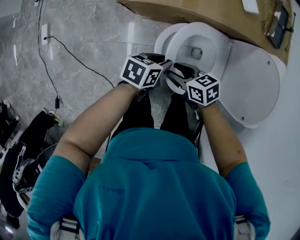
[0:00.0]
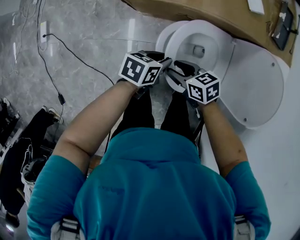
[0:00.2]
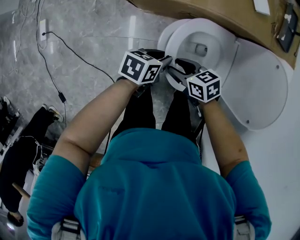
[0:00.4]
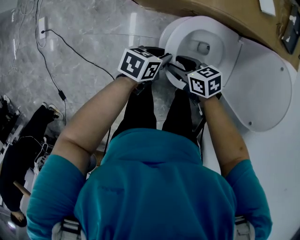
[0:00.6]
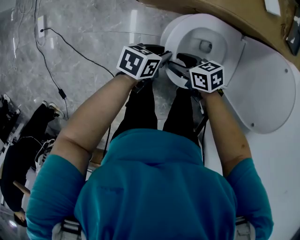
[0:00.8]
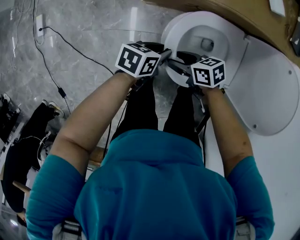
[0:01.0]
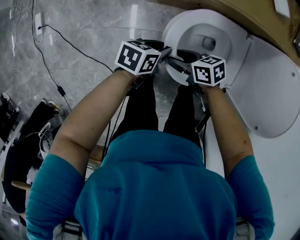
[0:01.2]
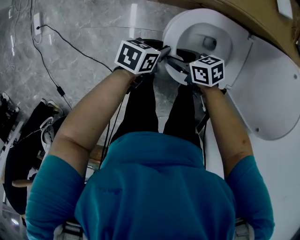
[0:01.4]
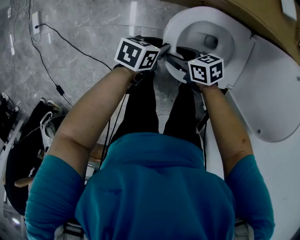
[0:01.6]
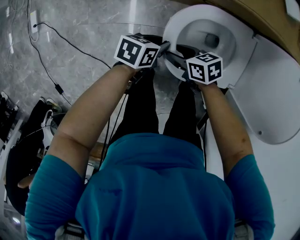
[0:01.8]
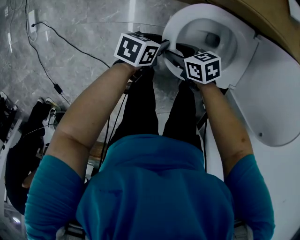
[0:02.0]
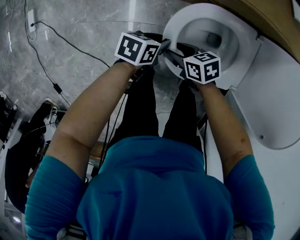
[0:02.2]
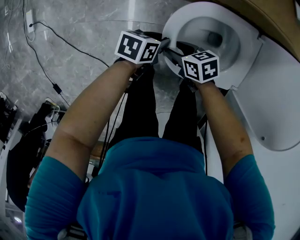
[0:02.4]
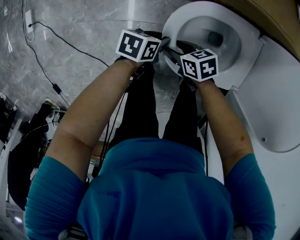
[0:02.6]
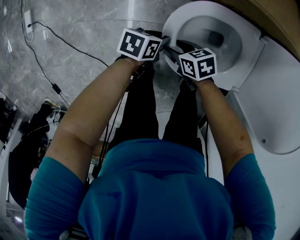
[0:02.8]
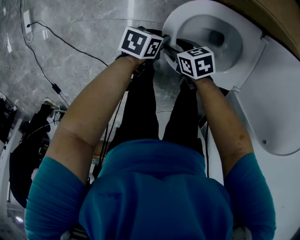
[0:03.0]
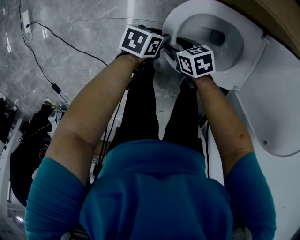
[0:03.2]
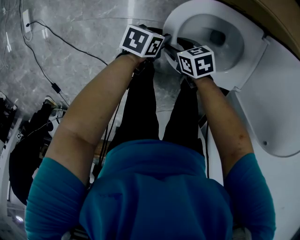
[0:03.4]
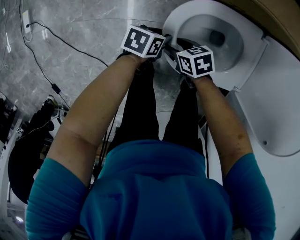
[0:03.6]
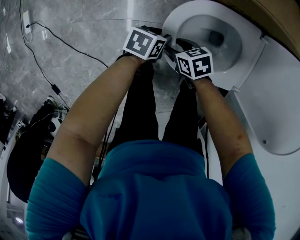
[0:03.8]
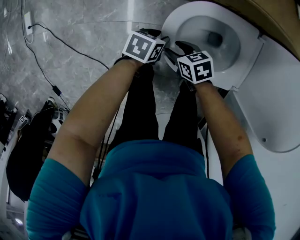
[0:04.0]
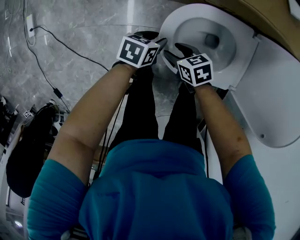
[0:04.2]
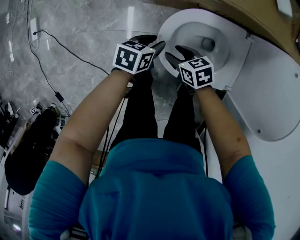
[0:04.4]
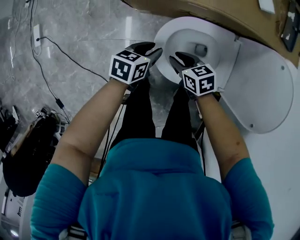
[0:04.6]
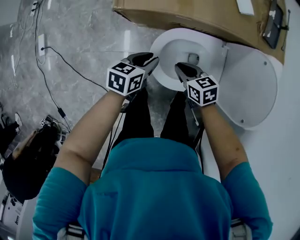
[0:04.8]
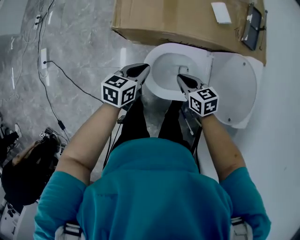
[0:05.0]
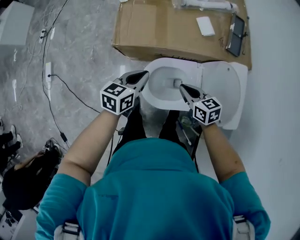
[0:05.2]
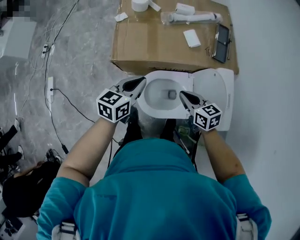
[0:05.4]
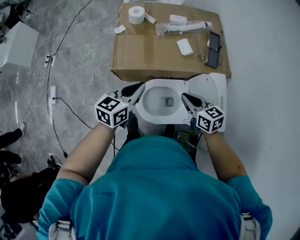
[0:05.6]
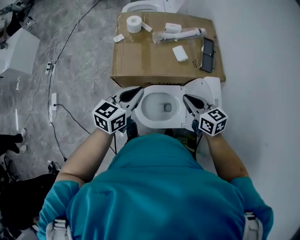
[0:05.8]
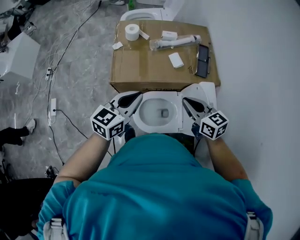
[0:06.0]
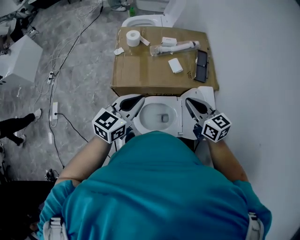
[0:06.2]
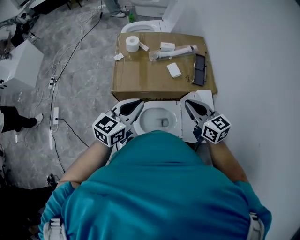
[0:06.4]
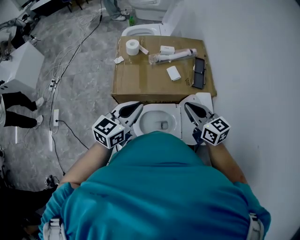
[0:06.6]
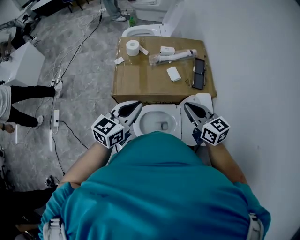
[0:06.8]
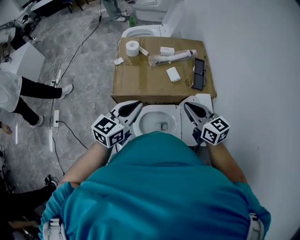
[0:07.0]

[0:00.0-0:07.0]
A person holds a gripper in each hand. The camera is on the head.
0:00.0 to 0:01.4: Both grippers travel together downward, approximately 10 cm.
0:01.4 to 0:02.8: The grippers both shift downward by some 10 cm.
0:02.8 to 0:04.2: The grippers move only a little.
0:04.2 to 0:05.6: Both grippers move upward, roughly 50 cm. The left gripper tilts its fingers about 30 degrees upward, and closes up. Meanwhile the right gripper rotates roughly 40 degrees, and closes.
0:05.6 to 0:07.0: The two grippers go about 15 cm upward.

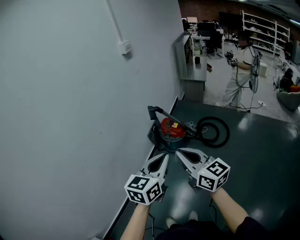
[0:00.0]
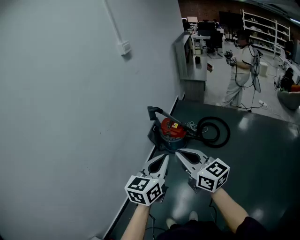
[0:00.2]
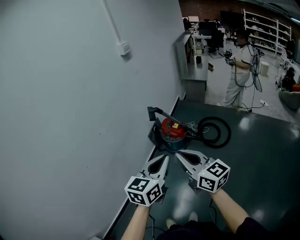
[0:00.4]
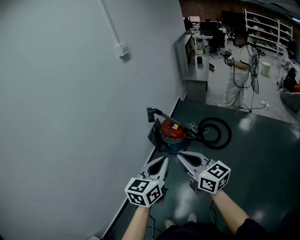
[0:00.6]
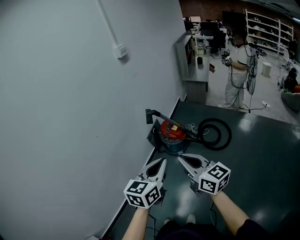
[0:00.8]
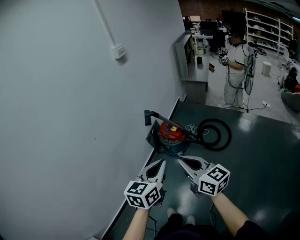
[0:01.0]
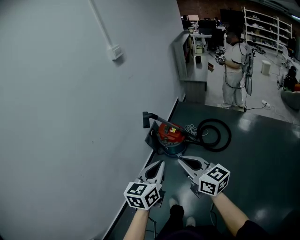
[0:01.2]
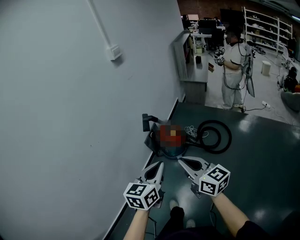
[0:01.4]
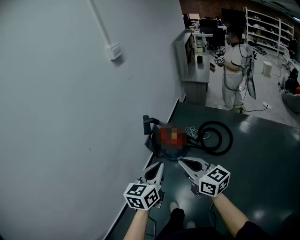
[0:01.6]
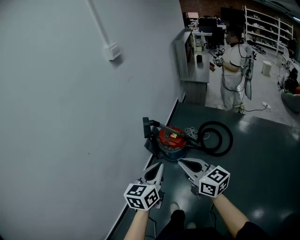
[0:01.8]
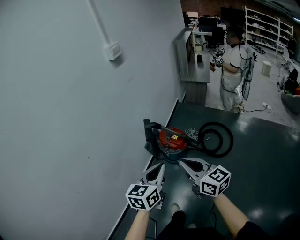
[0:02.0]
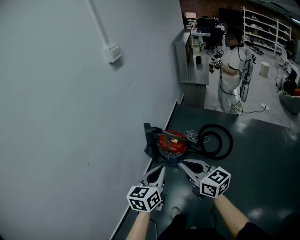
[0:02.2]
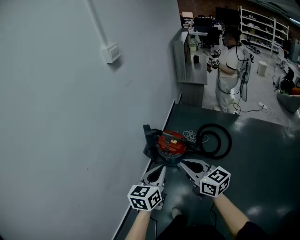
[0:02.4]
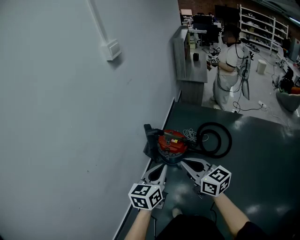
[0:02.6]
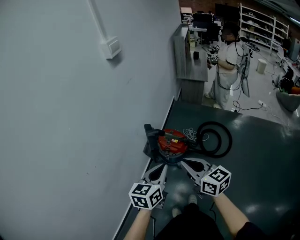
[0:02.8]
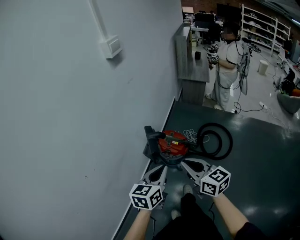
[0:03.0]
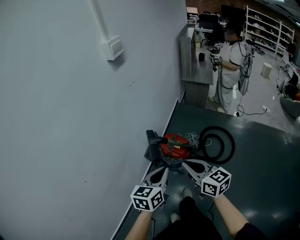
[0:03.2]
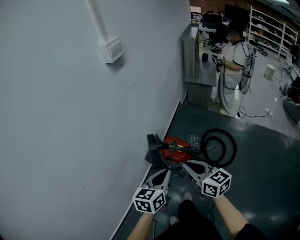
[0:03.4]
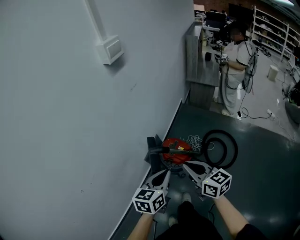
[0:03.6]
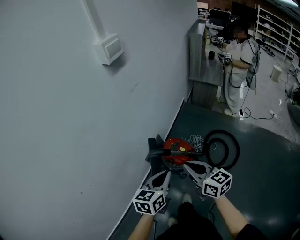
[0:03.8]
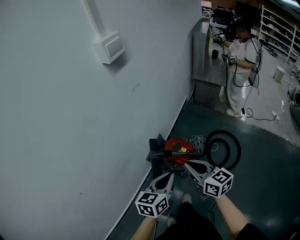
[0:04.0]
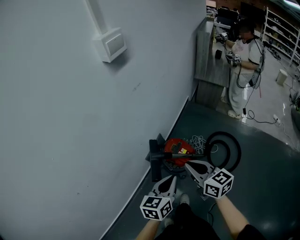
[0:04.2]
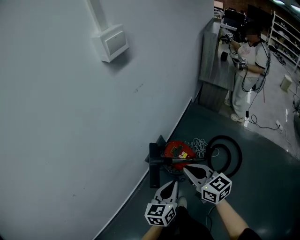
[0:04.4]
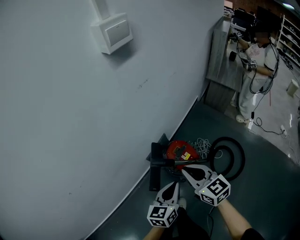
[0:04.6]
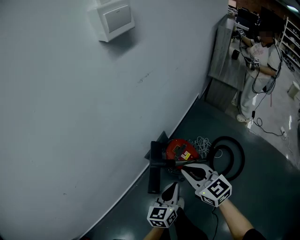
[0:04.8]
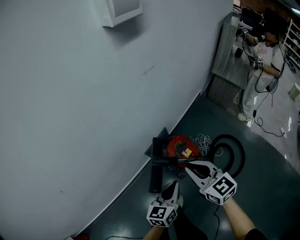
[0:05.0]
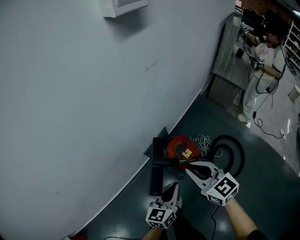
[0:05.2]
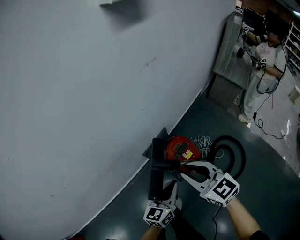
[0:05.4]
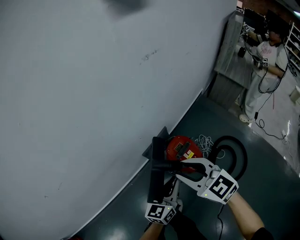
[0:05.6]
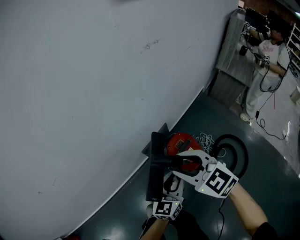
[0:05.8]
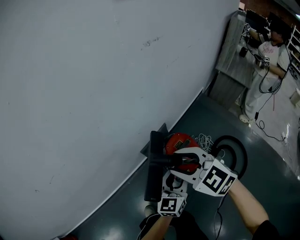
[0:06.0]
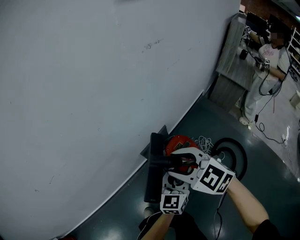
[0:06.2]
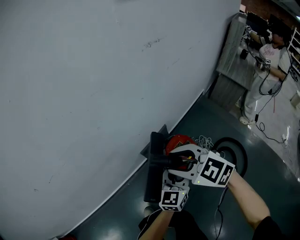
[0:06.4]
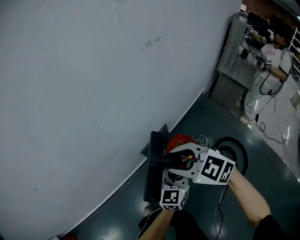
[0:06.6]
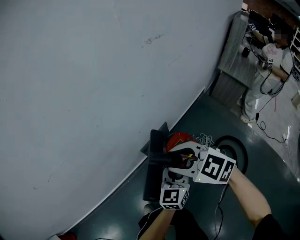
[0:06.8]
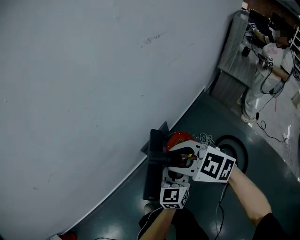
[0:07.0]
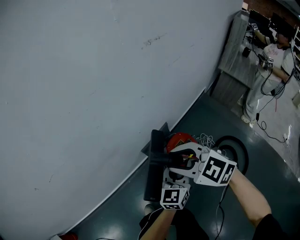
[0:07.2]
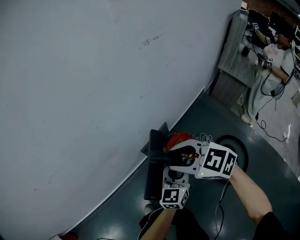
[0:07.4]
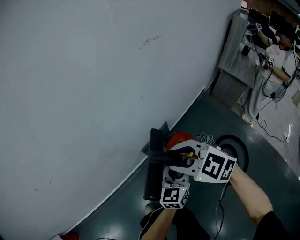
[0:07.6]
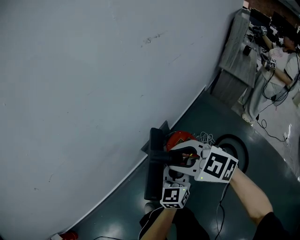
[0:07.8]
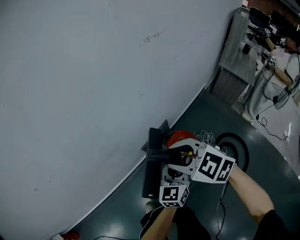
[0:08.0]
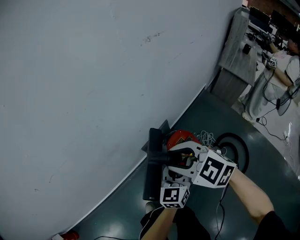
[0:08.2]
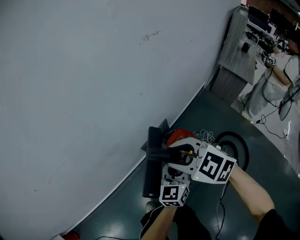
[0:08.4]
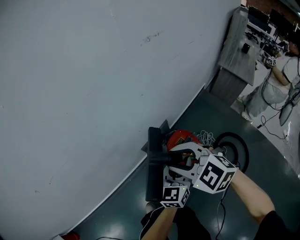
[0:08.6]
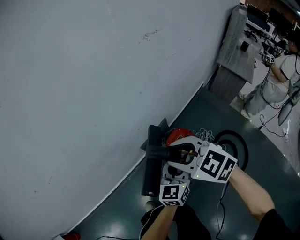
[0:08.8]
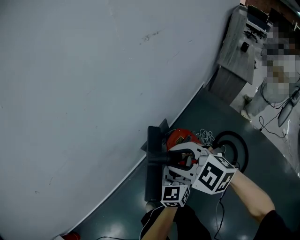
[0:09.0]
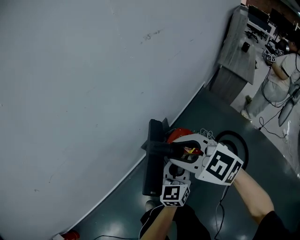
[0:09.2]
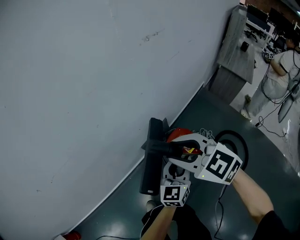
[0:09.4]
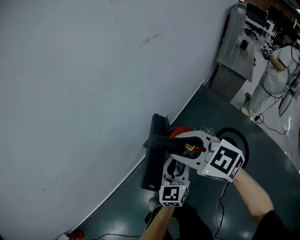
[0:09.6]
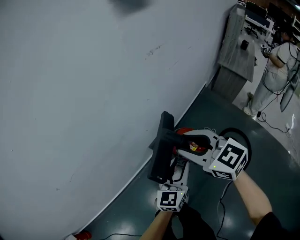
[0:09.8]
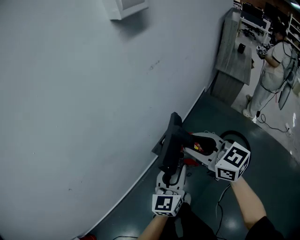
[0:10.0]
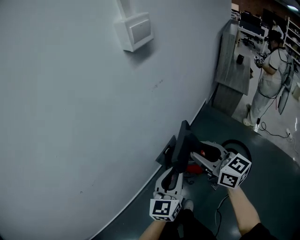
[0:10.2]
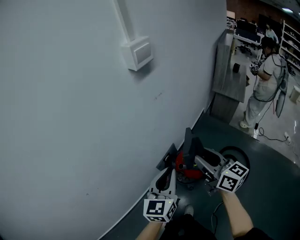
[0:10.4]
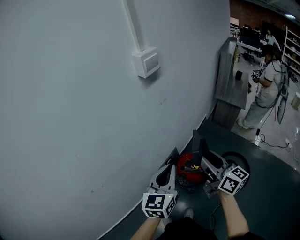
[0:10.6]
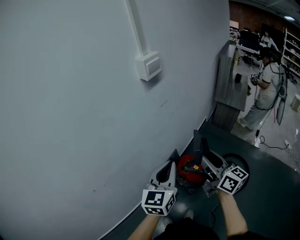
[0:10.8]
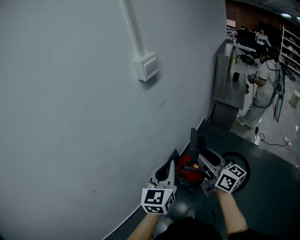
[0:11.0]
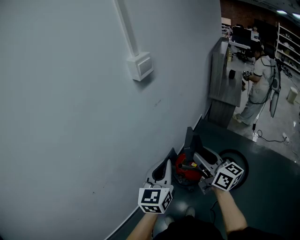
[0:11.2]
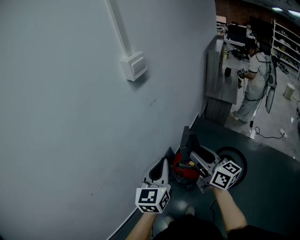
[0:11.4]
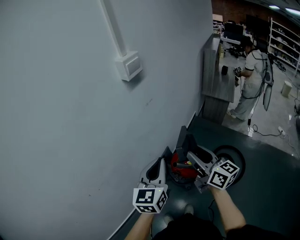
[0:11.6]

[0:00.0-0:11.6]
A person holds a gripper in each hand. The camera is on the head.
0:00.0 to 0:01.4: The right gripper is displaced forward, to the right and downward by approximately 10 cm, while the left gripper heads forward, covering approximately 10 cm.
0:01.4 to 0:02.8: Both grippers move forward, approximately 20 cm.
0:02.8 to 0:04.4: The left gripper shifts some 15 cm forward and downward; the right gripper travels forward by about 20 cm.
0:04.4 to 0:05.8: The left gripper moves downward and forward, about 20 cm, and opens; the right gripper travels downward, forward and to the left by roughly 15 cm, rotates some 40 degrees, and opens up.
0:05.8 to 0:07.2: The left gripper moves about 5 cm.
0:07.2 to 0:08.8: The grippers stay close to where they were, moving slightly.
0:08.8 to 0:10.2: Both grippers travel together upward, roughly 20 cm. The right gripper turns by roughly 50 degrees.
0:10.2 to 0:11.6: The right gripper is displaced upward by some 5 cm, and rotates approximately 20 degrees. Meanwhile the left gripper goes roughly 15 cm upward, and closes its fingers.

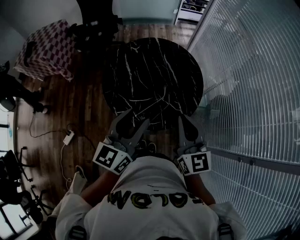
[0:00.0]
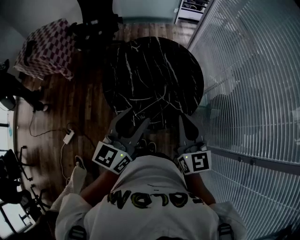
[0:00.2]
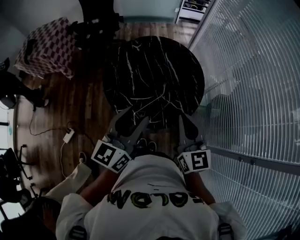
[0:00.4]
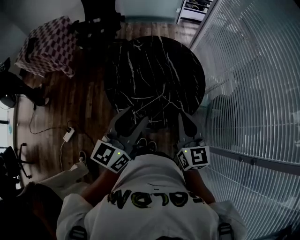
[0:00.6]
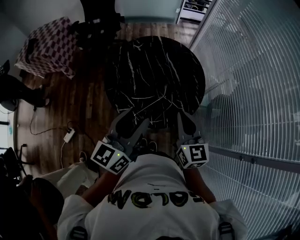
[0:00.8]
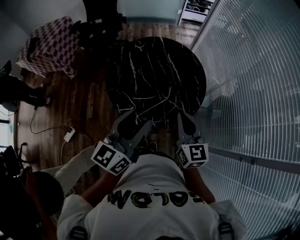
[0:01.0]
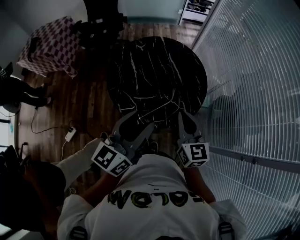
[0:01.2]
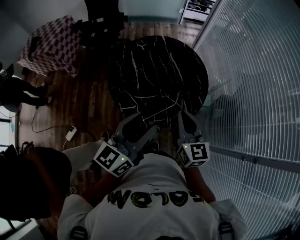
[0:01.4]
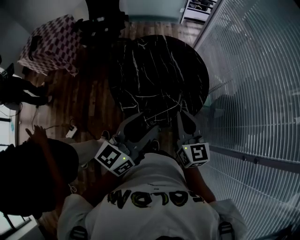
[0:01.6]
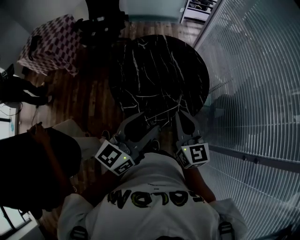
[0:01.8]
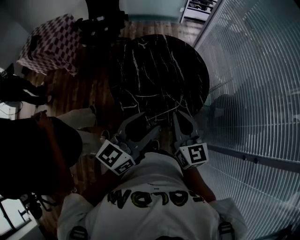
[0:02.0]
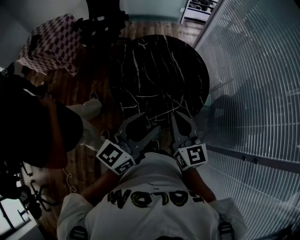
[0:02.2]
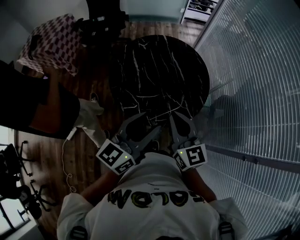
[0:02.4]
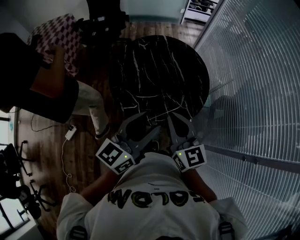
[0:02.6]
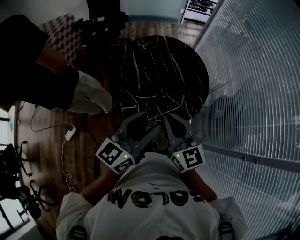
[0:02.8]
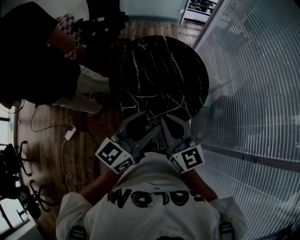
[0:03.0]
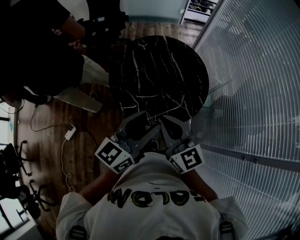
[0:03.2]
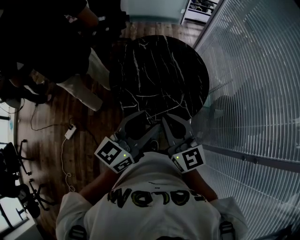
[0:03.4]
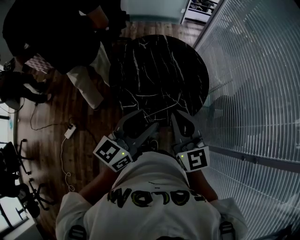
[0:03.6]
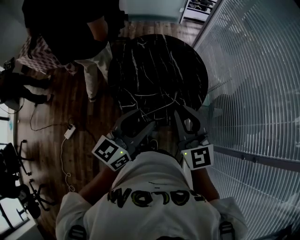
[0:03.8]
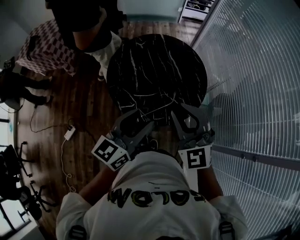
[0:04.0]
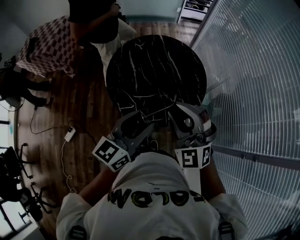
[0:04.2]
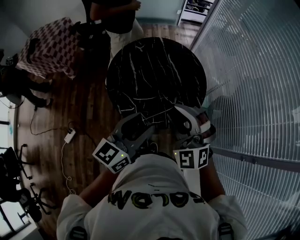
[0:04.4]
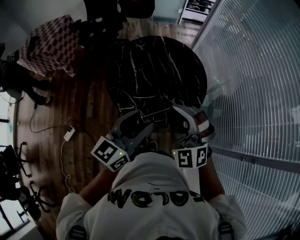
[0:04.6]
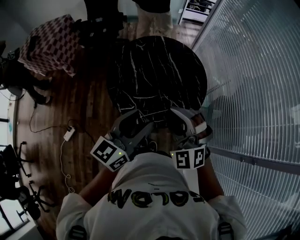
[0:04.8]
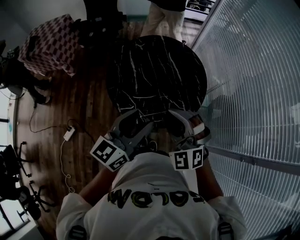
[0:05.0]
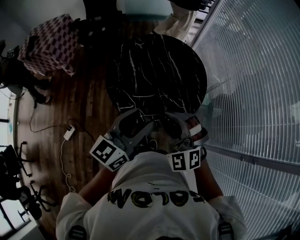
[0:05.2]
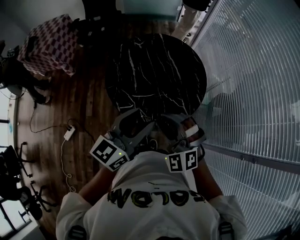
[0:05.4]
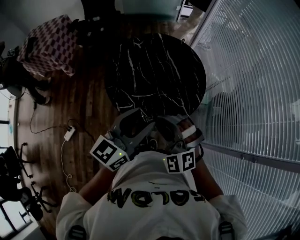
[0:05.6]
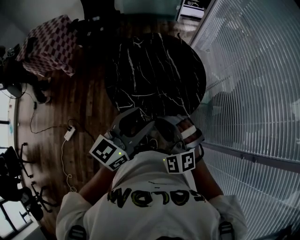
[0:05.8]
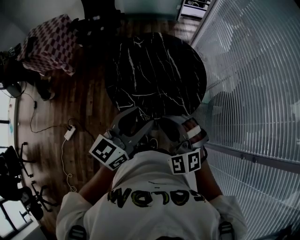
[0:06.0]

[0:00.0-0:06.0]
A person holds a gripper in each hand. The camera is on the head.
0:00.0 to 0:01.6: The right gripper moves approximately 5 cm.
0:01.6 to 0:03.0: The right gripper travels to the left by about 5 cm.
0:03.0 to 0:04.4: The right gripper rotates around the line of its fingers by about 60 degrees, counterclockwise from behind, and opens up.
0:04.4 to 0:06.0: The right gripper moves downward, approximately 5 cm.
